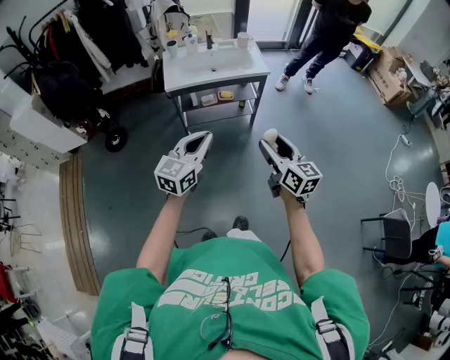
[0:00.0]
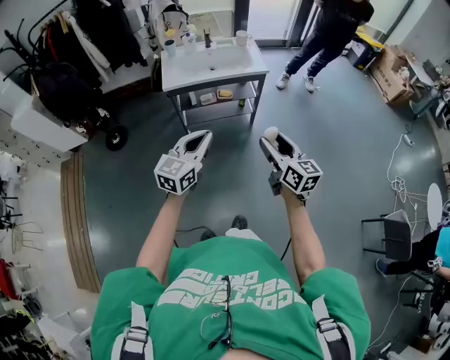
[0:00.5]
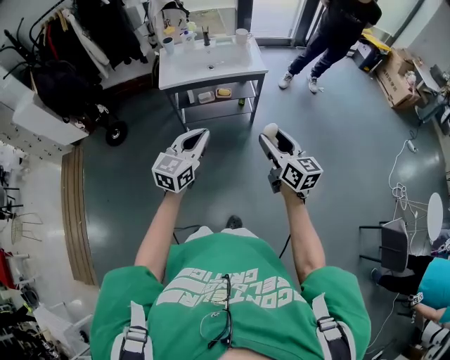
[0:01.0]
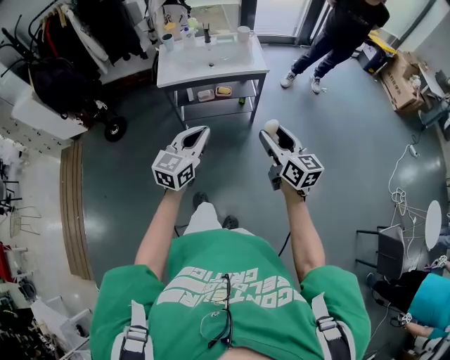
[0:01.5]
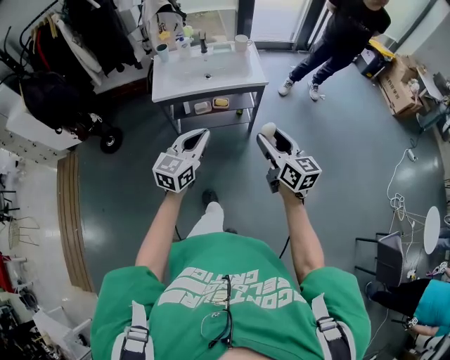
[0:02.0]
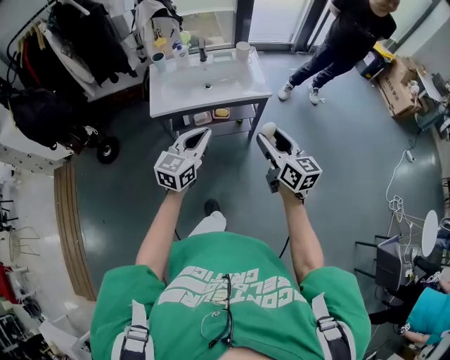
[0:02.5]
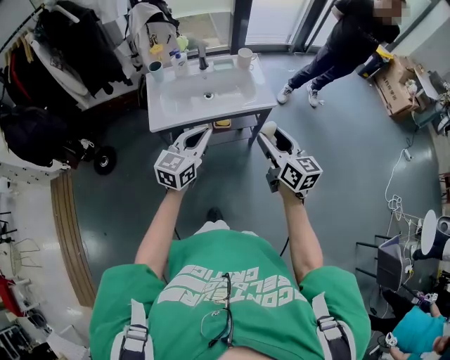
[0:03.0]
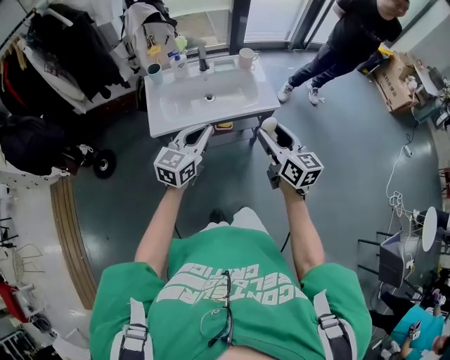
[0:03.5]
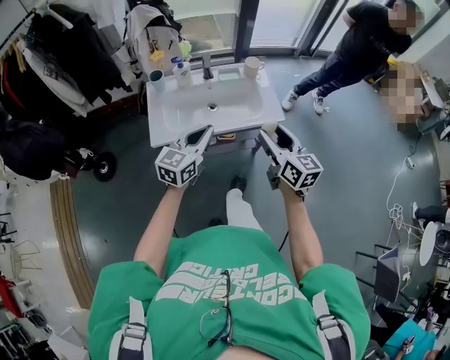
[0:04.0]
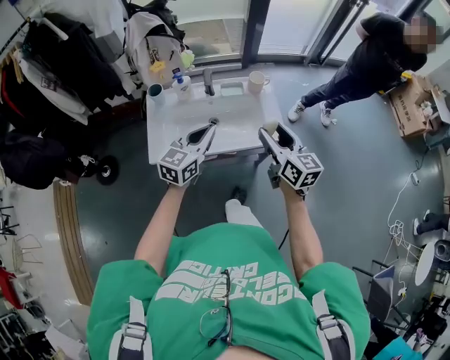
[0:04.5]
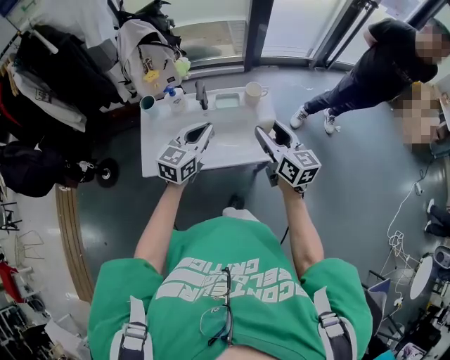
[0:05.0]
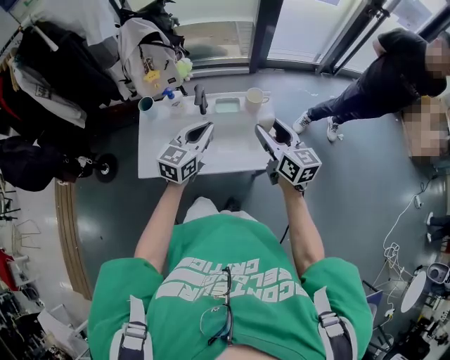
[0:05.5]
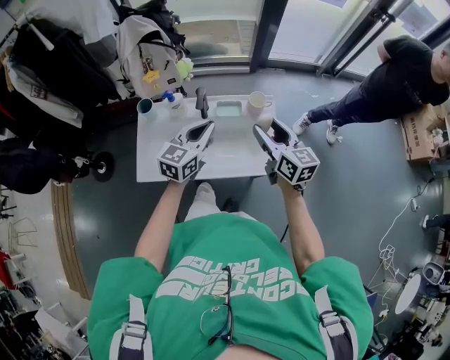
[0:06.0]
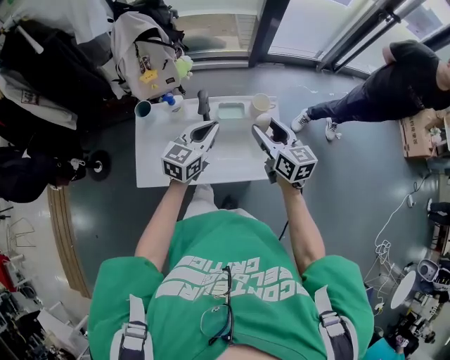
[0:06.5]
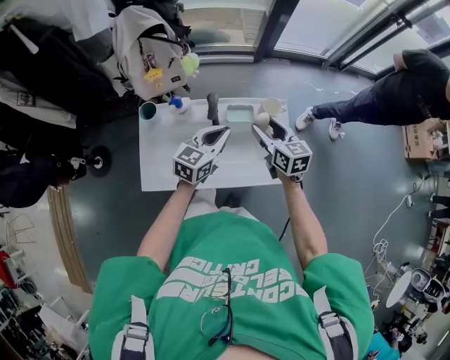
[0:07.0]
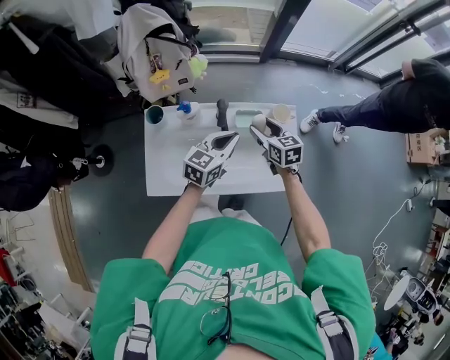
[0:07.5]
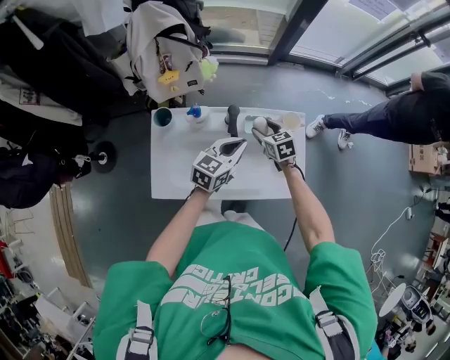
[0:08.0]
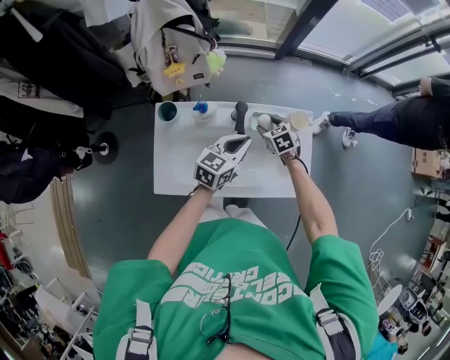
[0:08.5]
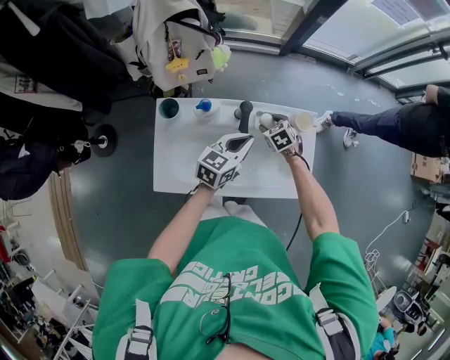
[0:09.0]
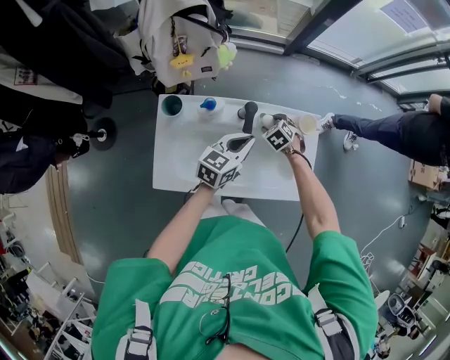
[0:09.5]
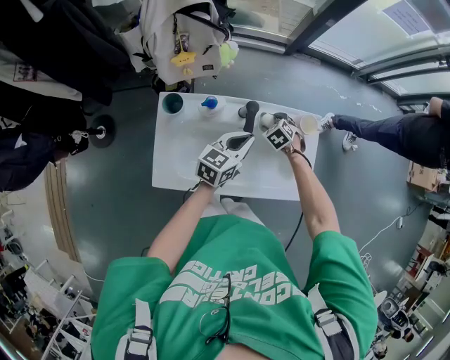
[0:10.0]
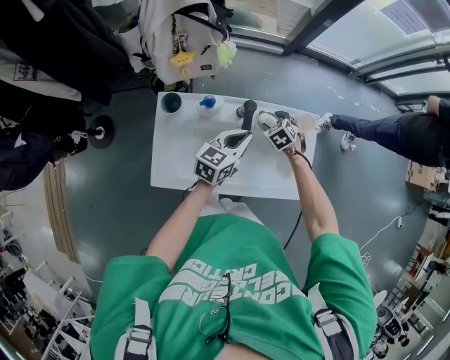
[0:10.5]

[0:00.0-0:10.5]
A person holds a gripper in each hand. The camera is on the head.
0:00.0 to 0:02.0: The grippers both shift forward and to the right by some 20 cm.
0:02.0 to 0:04.0: The two grippers go approximately 30 cm forward.
0:04.0 to 0:06.5: The grippers both shift forward by about 35 cm.
0:06.5 to 0:08.5: The right gripper is displaced downward and forward by approximately 30 cm, and points its fingers about 40 degrees further downward. The left gripper travels downward and forward by roughly 10 cm.
0:08.5 to 0:10.5: The right gripper rotates about 20 degrees.

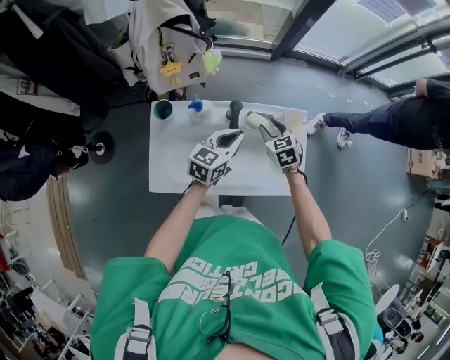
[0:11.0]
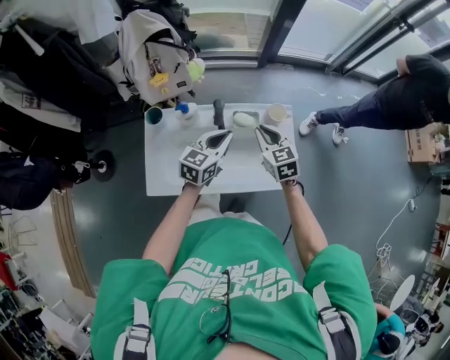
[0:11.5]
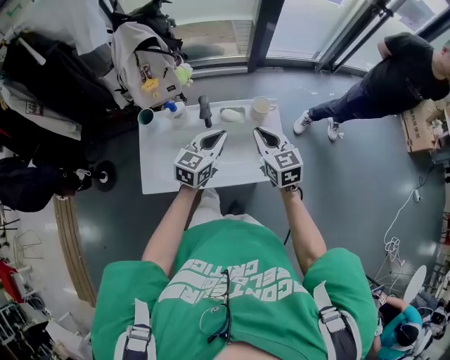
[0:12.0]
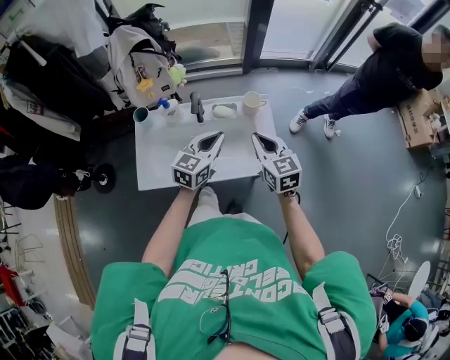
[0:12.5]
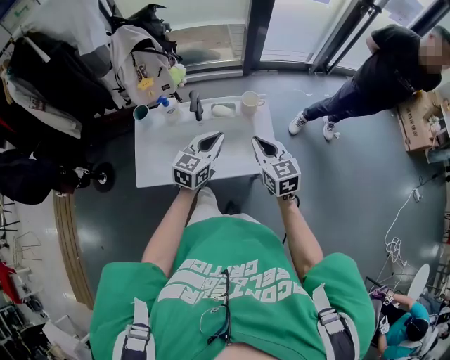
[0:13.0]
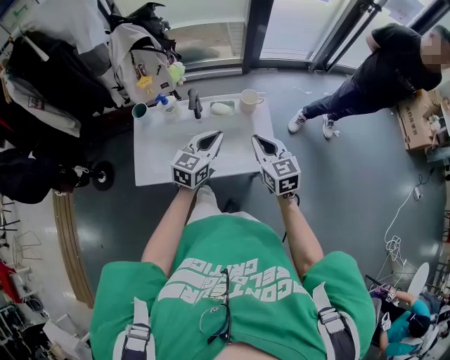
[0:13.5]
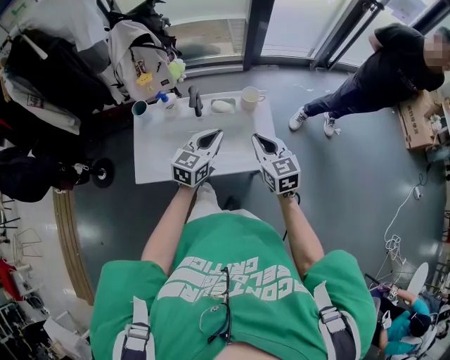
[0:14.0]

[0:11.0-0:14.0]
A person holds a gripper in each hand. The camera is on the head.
0:11.0 to 0:12.5: The right gripper is displaced upward, backward and to the right by some 25 cm, swivels about 30 degrees, and closes its fingers, while the left gripper is displaced backward, to the right and upward by roughly 15 cm.
0:12.5 to 0:14.0: The grippers stay close to where they were, moving slightly.

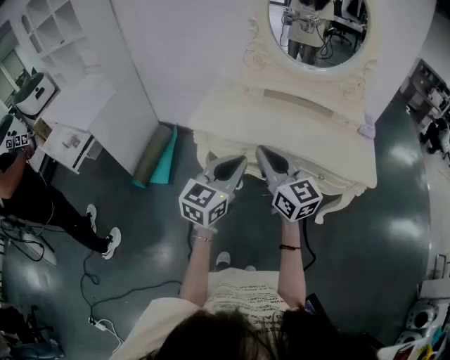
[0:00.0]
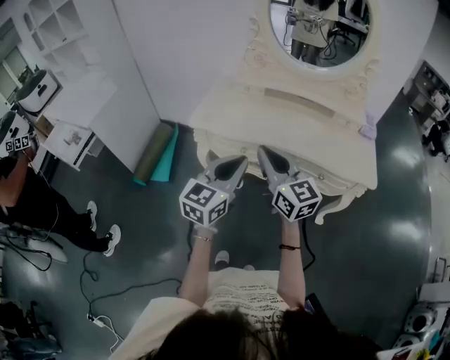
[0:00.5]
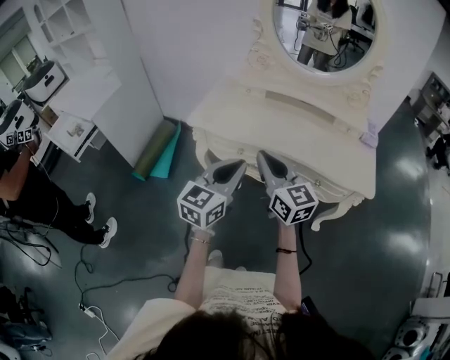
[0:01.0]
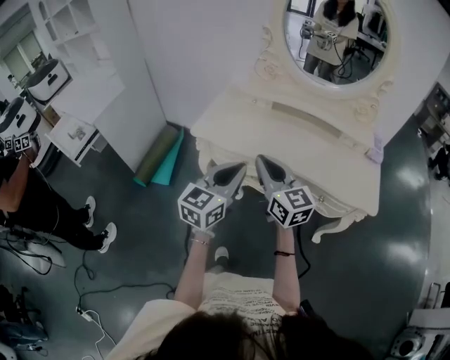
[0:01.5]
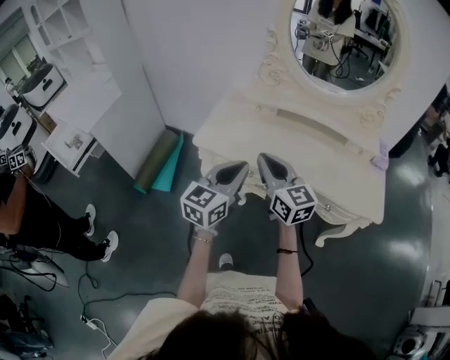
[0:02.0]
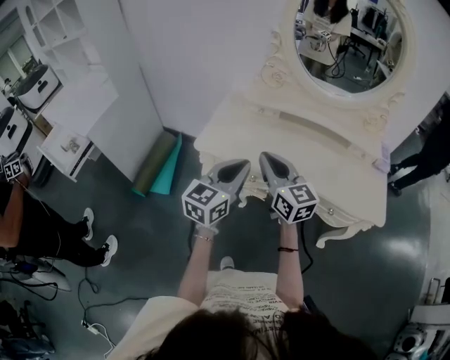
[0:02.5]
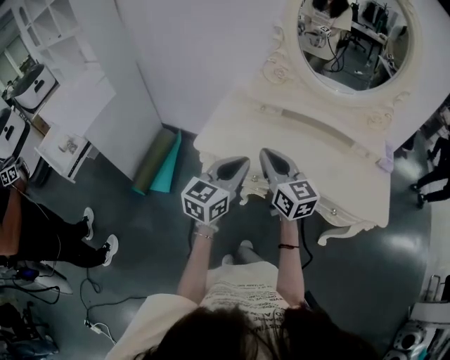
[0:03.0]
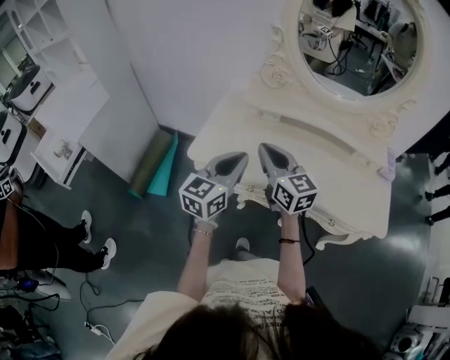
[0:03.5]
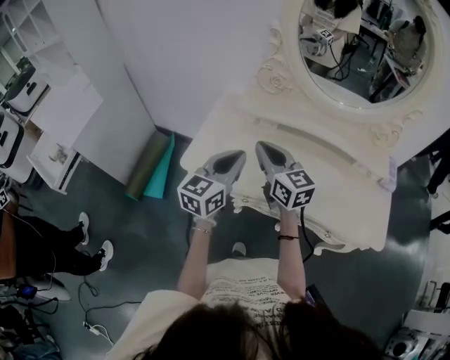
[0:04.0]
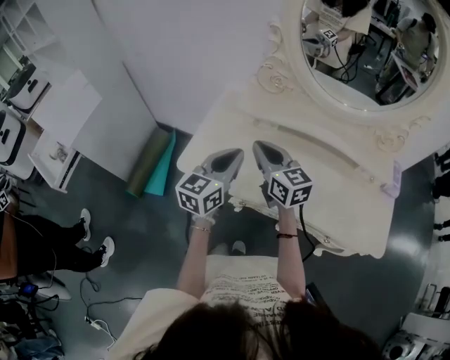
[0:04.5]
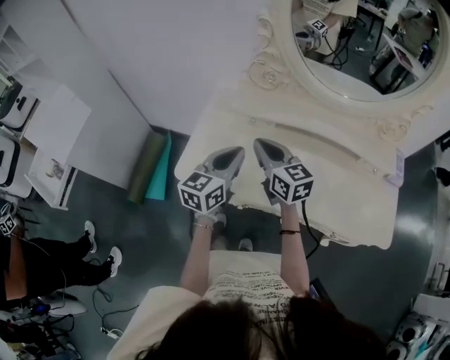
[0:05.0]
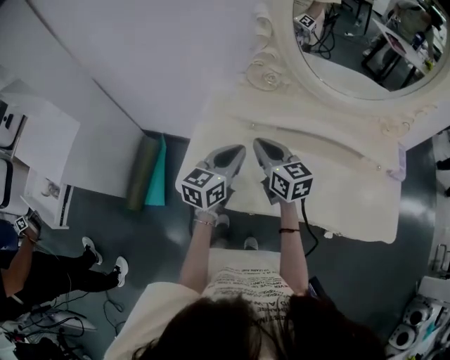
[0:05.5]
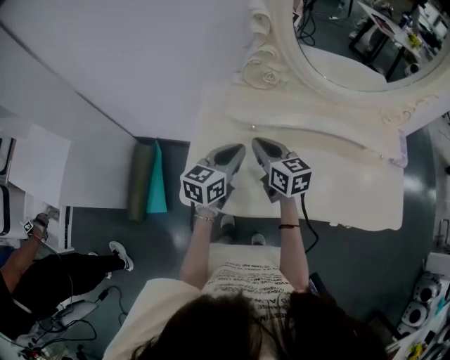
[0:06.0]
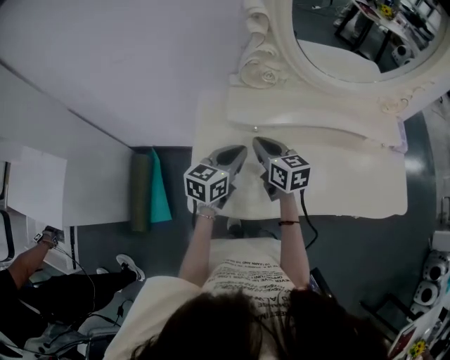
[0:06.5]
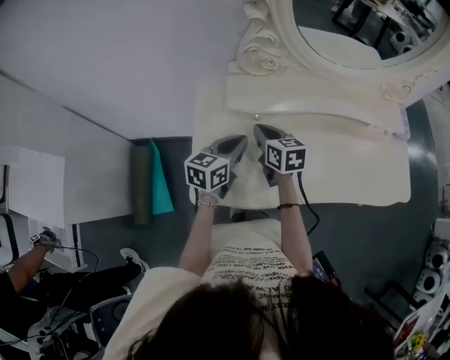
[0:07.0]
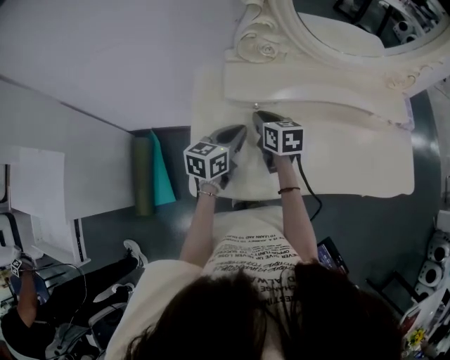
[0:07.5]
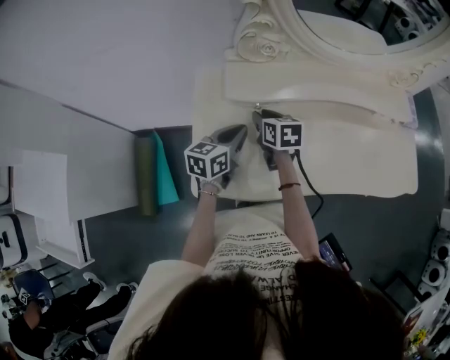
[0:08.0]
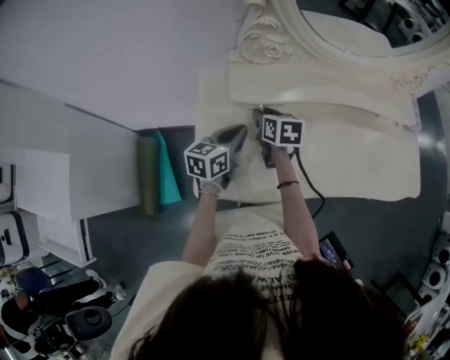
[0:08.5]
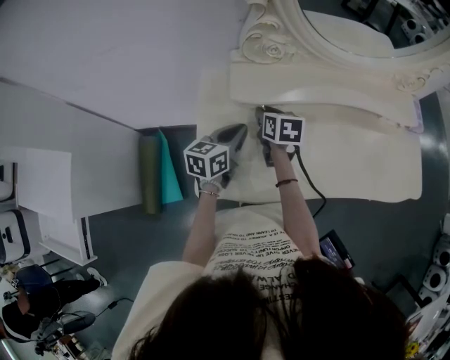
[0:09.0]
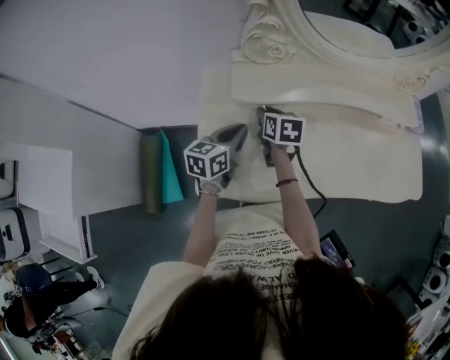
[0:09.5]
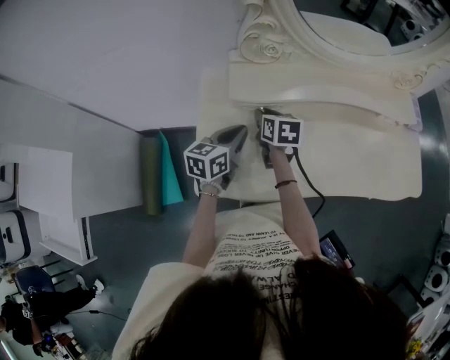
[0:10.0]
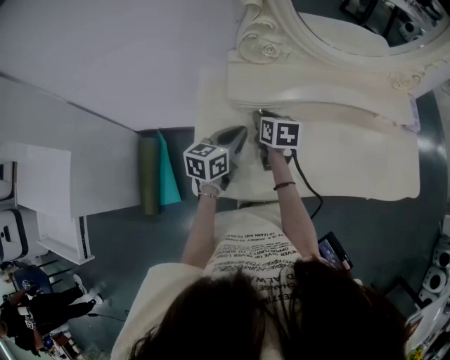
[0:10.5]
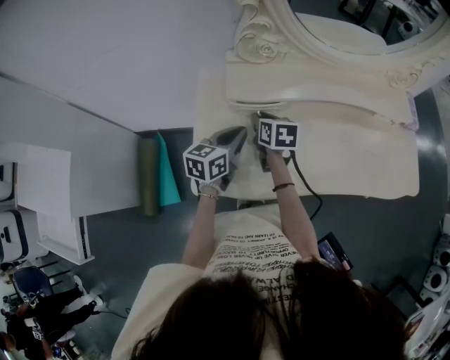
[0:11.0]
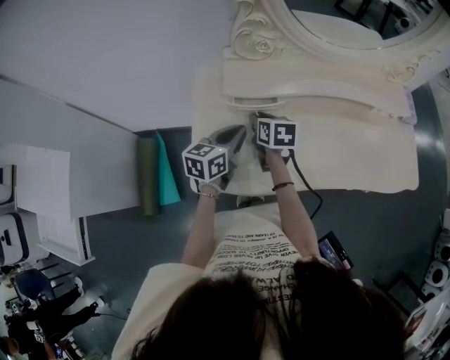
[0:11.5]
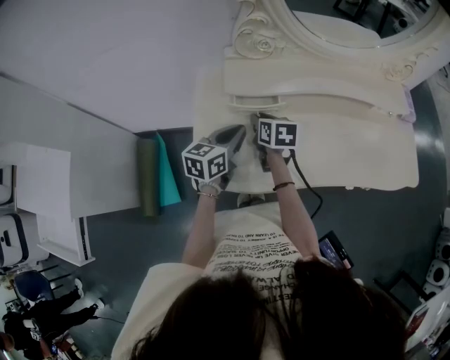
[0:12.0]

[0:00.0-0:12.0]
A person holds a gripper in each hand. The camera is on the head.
0:00.0 to 0:02.0: The two grippers go some 10 cm forward.
0:02.0 to 0:04.0: The grippers both shift forward by roughly 20 cm.
0:04.0 to 0:06.0: Both grippers move forward and downward, roughly 20 cm. The right gripper rotates roughly 20 degrees.
0:06.0 to 0:08.0: The right gripper is displaced downward and forward by some 10 cm, turns by approximately 30 degrees, and opens its fingers, while the left gripper goes roughly 5 cm downward.
0:08.0 to 0:12.0: The grippers make only small movements.

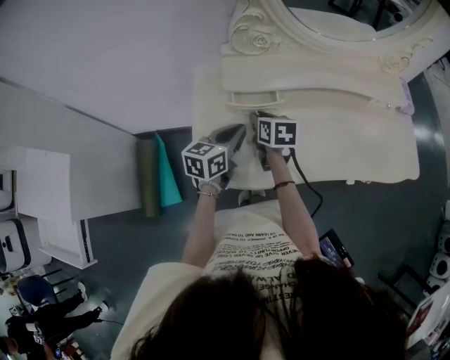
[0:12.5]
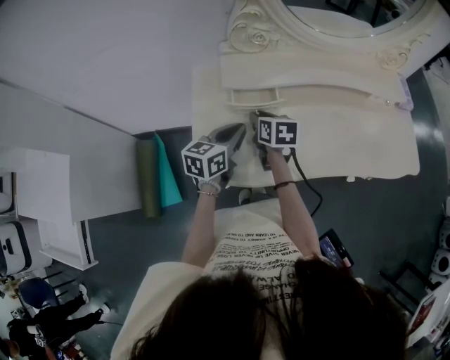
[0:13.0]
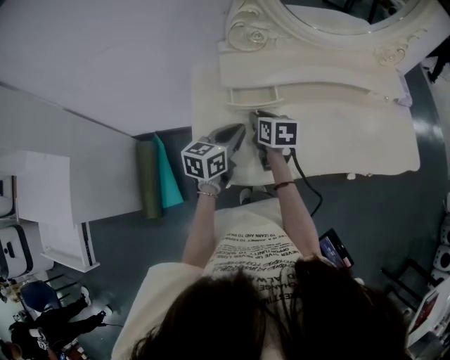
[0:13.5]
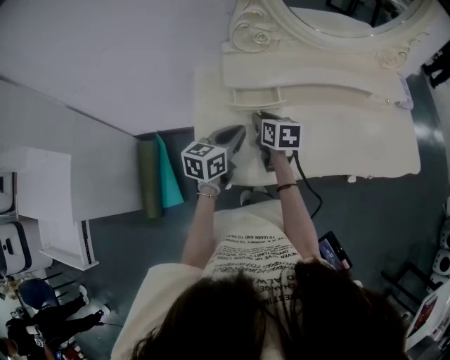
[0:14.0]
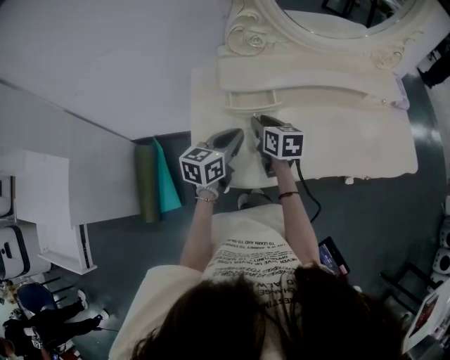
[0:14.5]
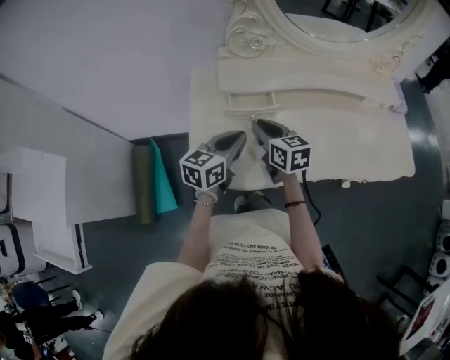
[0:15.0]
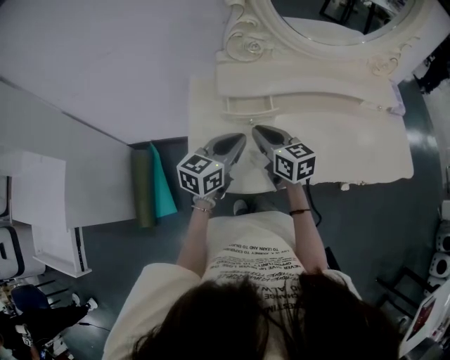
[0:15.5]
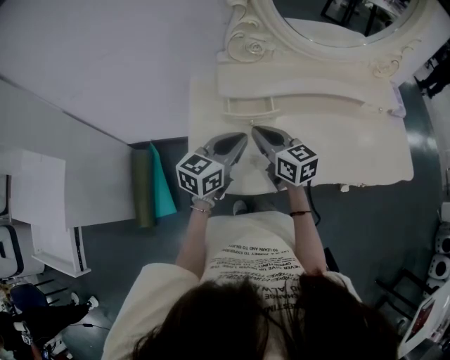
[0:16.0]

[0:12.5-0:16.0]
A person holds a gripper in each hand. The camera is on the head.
0:12.5 to 0:14.5: There are only small adjustments of the grippers.
0:14.5 to 0:16.0: The right gripper moves upward, approximately 5 cm, turns by some 20 degrees, and closes its fingers.
